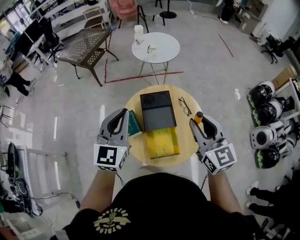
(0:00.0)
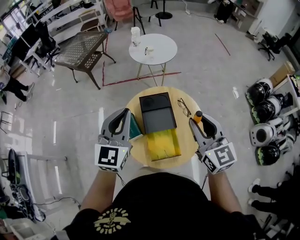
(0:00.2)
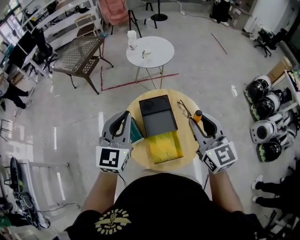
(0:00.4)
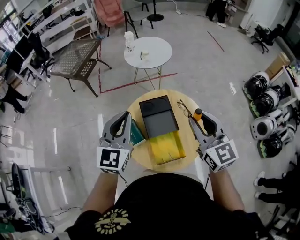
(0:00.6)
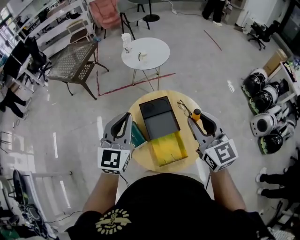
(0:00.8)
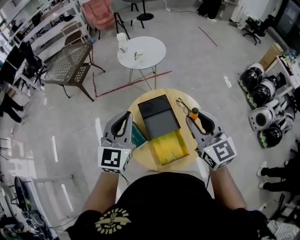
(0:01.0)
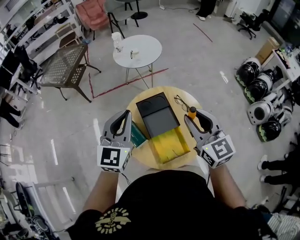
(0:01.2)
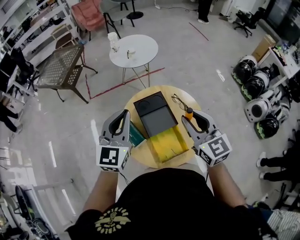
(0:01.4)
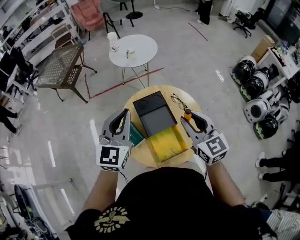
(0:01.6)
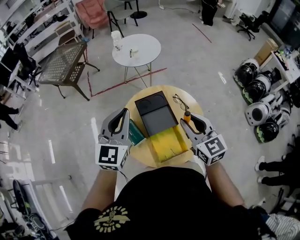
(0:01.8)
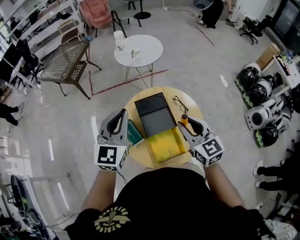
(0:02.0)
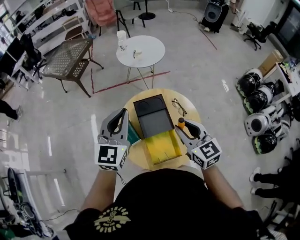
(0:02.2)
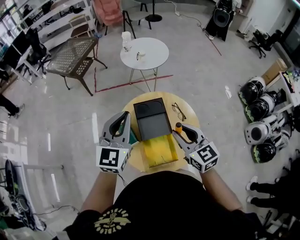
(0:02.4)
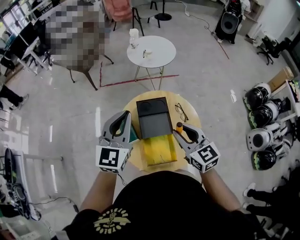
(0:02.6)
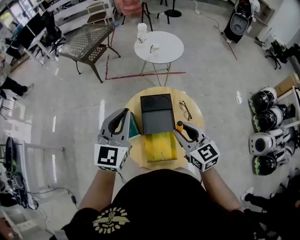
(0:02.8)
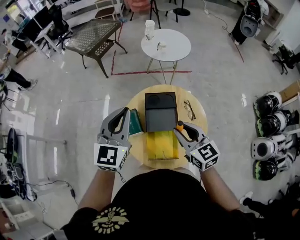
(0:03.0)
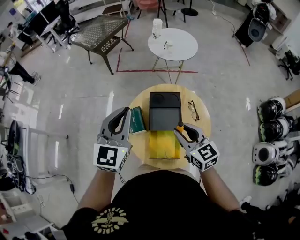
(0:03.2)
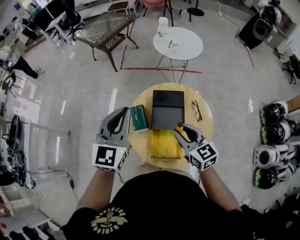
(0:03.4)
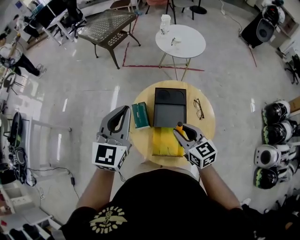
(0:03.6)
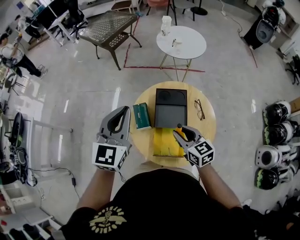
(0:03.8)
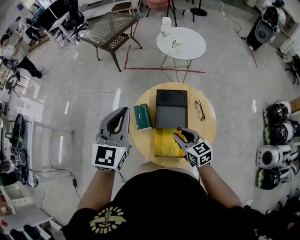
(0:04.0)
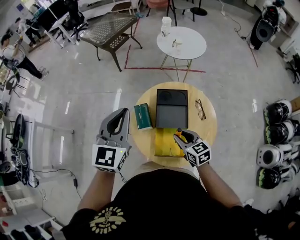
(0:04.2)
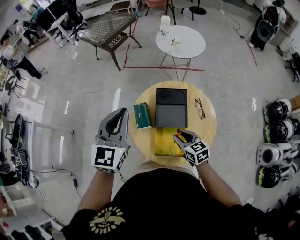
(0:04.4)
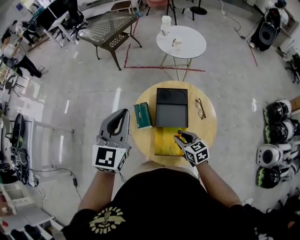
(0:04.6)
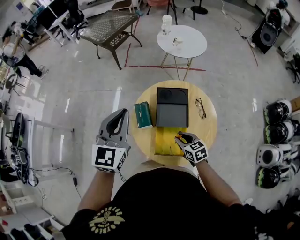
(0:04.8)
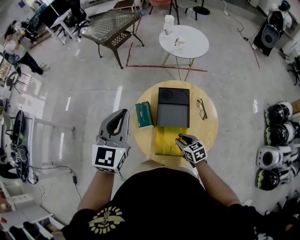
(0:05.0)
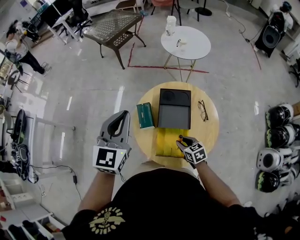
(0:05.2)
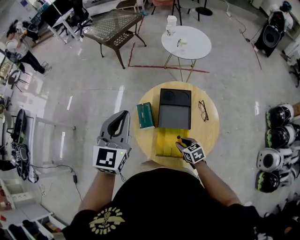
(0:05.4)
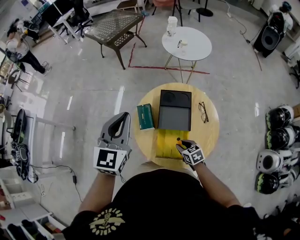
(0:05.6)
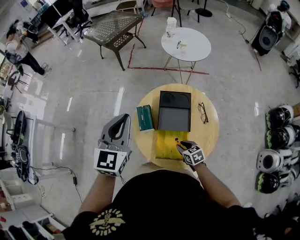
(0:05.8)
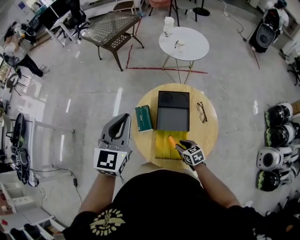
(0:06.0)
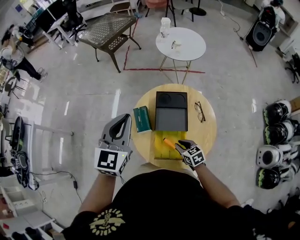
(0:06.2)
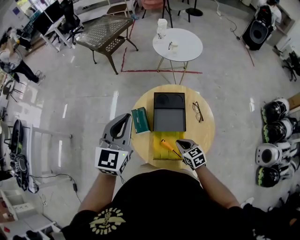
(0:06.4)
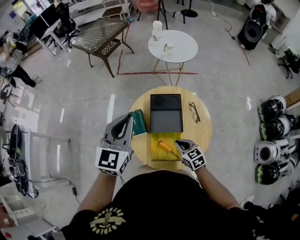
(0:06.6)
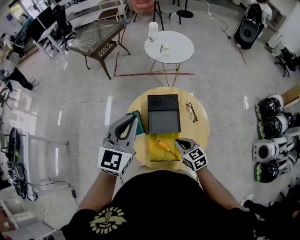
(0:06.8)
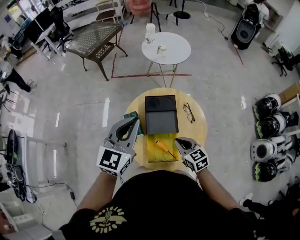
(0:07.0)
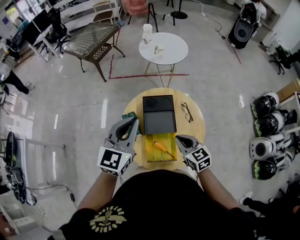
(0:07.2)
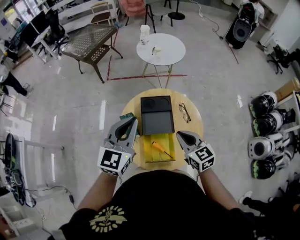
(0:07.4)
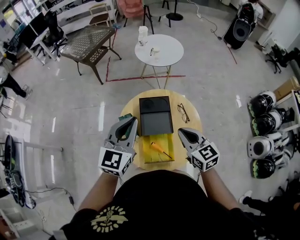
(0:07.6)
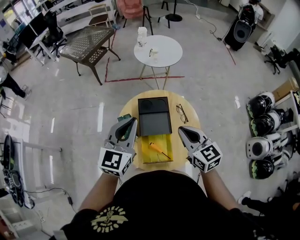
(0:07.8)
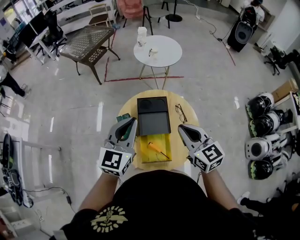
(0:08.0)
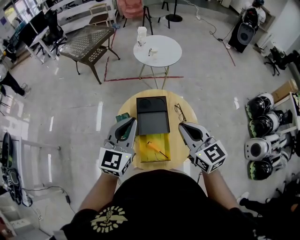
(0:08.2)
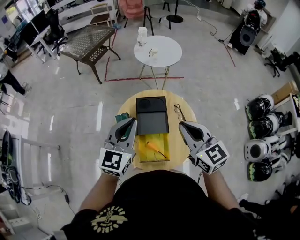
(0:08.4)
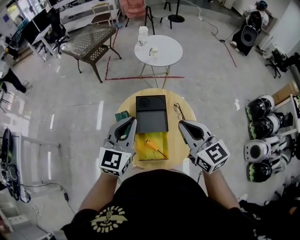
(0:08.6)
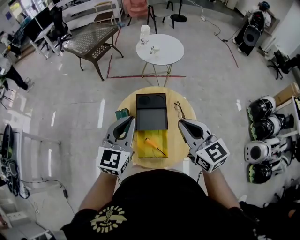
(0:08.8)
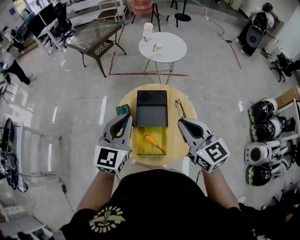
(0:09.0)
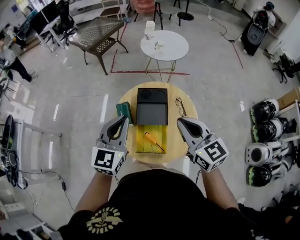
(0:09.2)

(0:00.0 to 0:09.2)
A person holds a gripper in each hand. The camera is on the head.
0:00.0 - 0:01.6: The right gripper shifts by roughly 5 cm. The left gripper moves forward, roughly 5 cm.
0:01.6 - 0:03.0: The left gripper rotates roughly 20 degrees; the right gripper is displaced downward by roughly 5 cm, and rotates some 30 degrees.
0:03.0 - 0:04.6: The right gripper shifts some 15 cm downward, and turns by approximately 20 degrees, while the left gripper goes some 5 cm to the left.
0:04.6 - 0:06.2: The right gripper shifts approximately 10 cm downward.
0:06.2 - 0:07.6: The right gripper goes approximately 25 cm upward, changes its angle by roughly 30 degrees, and closes its fingers, while the left gripper heads to the right, covering some 10 cm.
0:07.6 - 0:09.2: The left gripper travels backward by roughly 5 cm. The right gripper shifts some 10 cm upward.

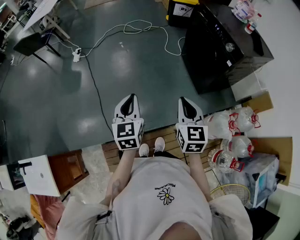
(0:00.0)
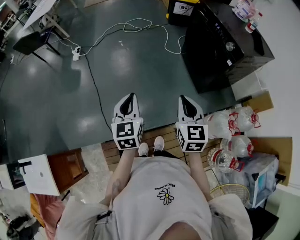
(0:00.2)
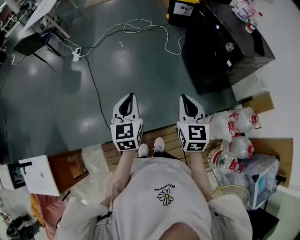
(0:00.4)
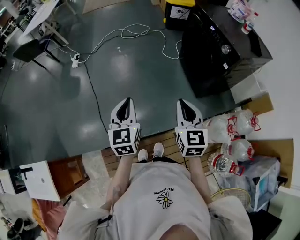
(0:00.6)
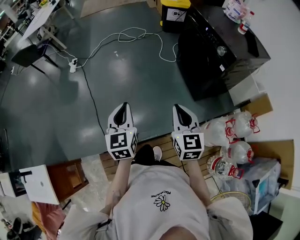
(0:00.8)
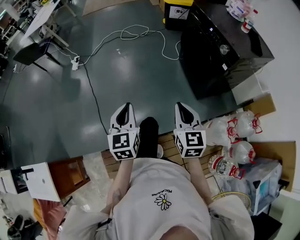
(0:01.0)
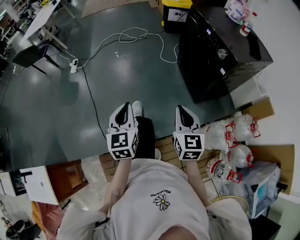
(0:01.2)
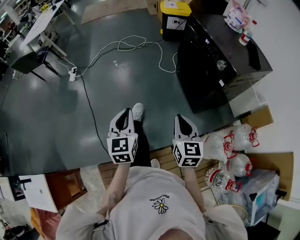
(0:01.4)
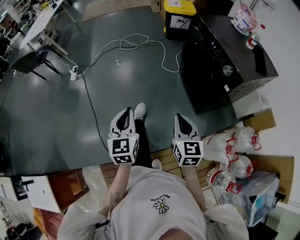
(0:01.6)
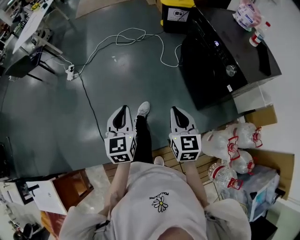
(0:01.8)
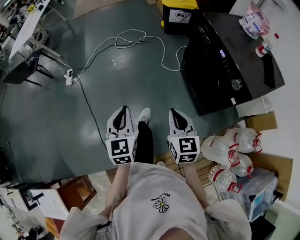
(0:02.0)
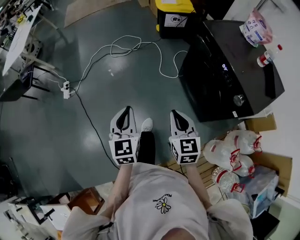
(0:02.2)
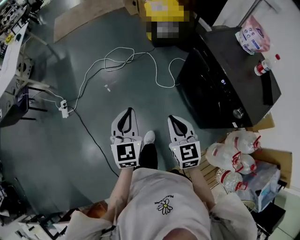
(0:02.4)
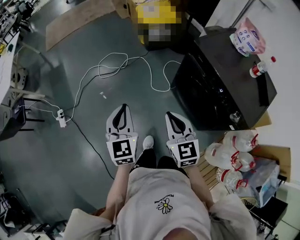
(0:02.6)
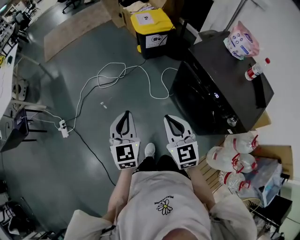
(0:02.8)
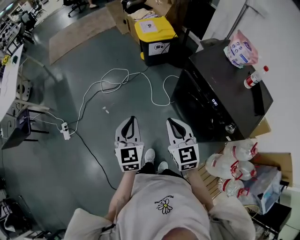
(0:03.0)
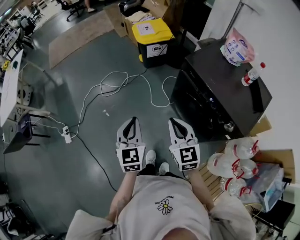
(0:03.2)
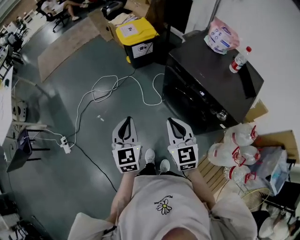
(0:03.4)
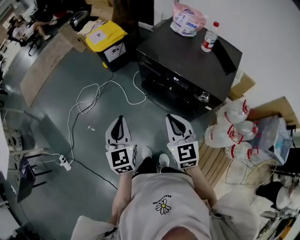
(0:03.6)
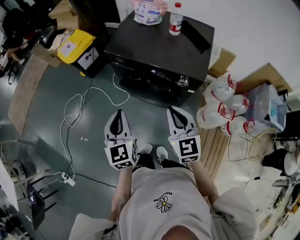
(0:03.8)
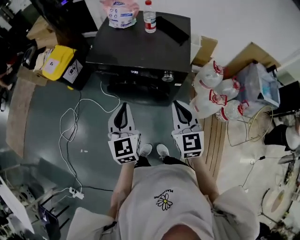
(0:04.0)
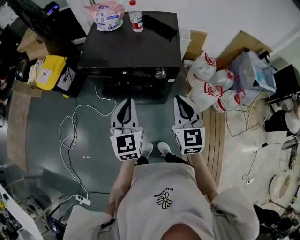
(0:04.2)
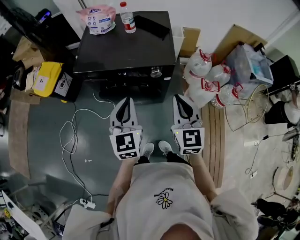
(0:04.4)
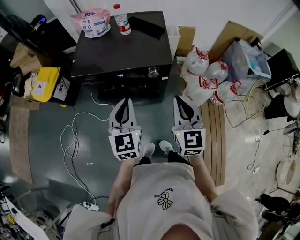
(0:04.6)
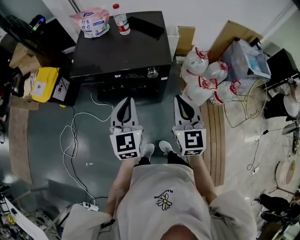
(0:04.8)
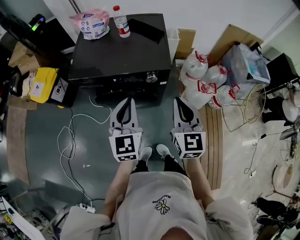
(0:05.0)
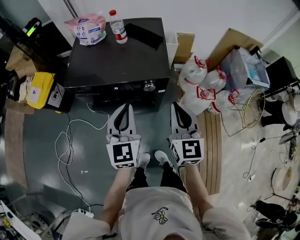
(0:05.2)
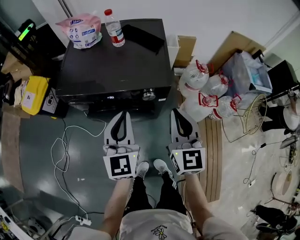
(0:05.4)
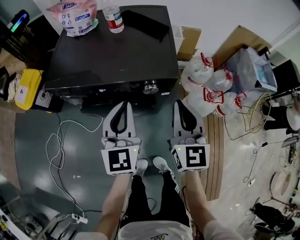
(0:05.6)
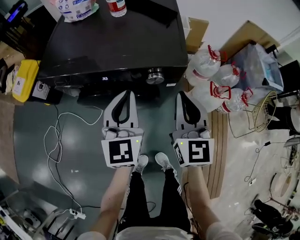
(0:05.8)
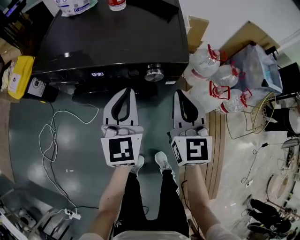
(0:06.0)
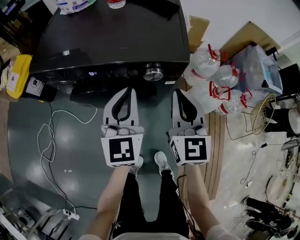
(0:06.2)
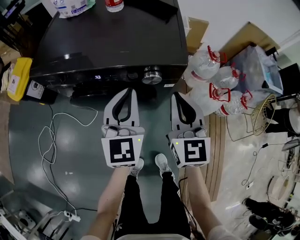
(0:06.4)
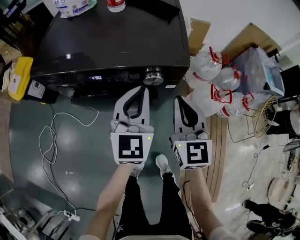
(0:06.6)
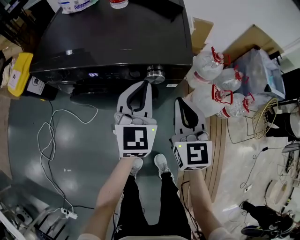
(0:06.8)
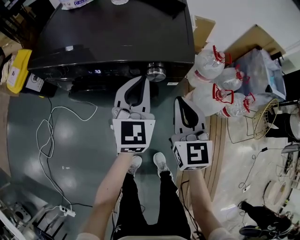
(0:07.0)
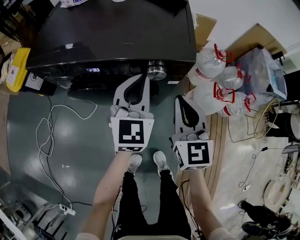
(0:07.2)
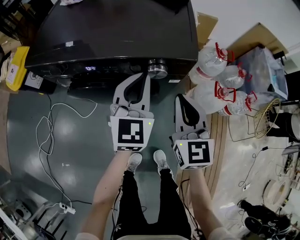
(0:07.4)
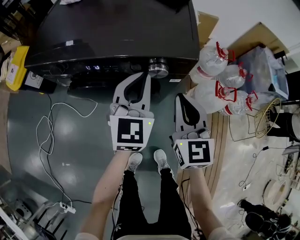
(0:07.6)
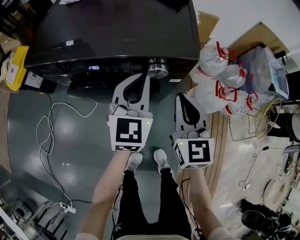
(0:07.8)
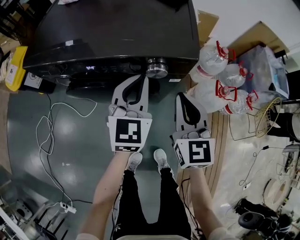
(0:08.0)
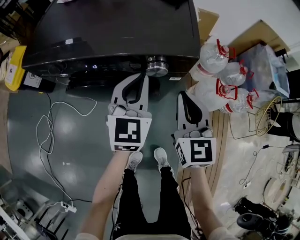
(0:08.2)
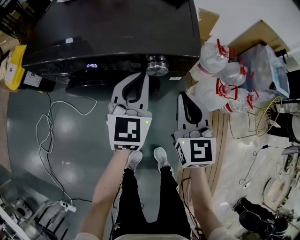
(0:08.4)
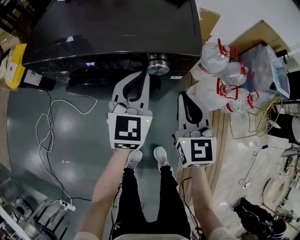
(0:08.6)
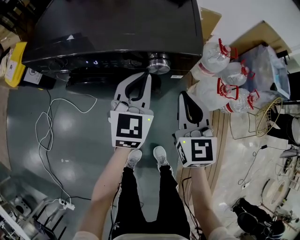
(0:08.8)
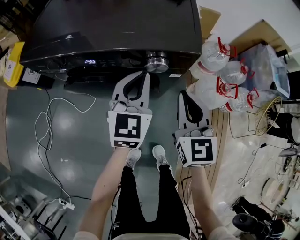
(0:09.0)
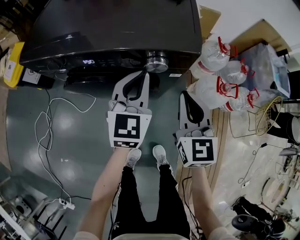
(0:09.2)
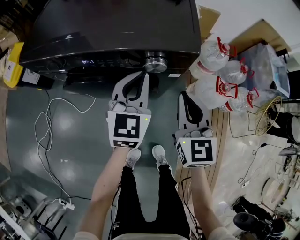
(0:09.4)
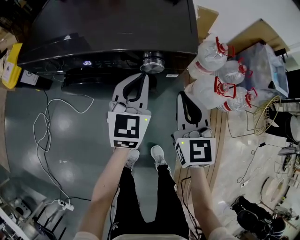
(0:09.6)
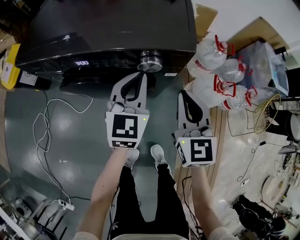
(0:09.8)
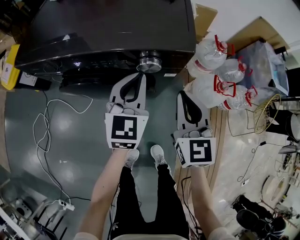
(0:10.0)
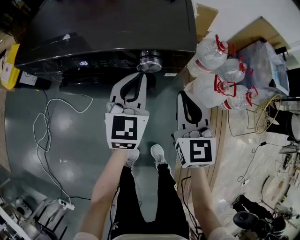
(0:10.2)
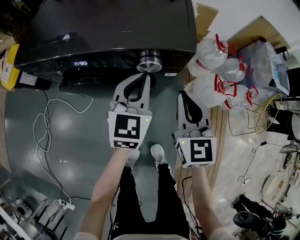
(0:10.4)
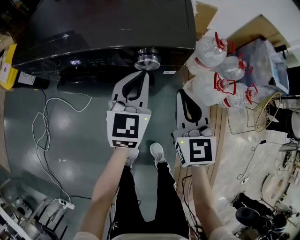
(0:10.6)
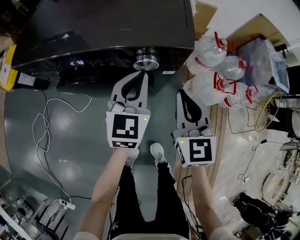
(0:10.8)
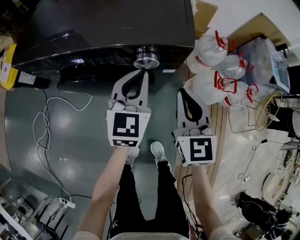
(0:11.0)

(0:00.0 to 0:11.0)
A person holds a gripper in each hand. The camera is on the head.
0:00.0 - 0:01.6: The grippers both shift forward and to the right by roughly 15 cm.
0:01.6 - 0:03.2: The pair of grippers is taken forward, about 40 cm.
0:03.2 - 0:04.8: The left gripper changes place by approximately 30 cm, and changes its angle by roughly 60 degrees. Meanwhile the right gripper moves some 35 cm, and swivels roughly 60 degrees.
0:04.8 - 0:06.2: Both grippers move downward and forward, approximately 20 cm.
0:06.2 - 0:07.8: The right gripper moves downward, about 5 cm; the left gripper changes place by some 5 cm.
0:07.8 - 0:11.0: The grippers move only a little.

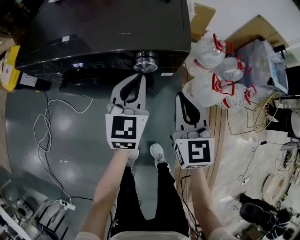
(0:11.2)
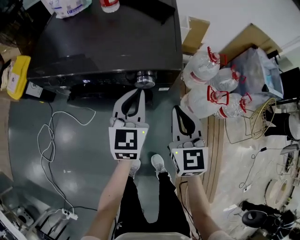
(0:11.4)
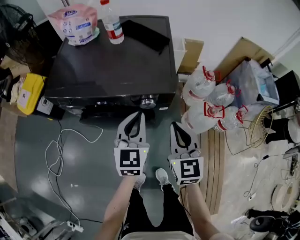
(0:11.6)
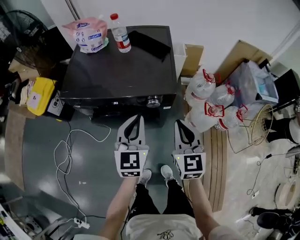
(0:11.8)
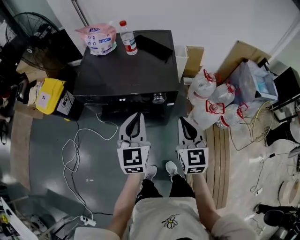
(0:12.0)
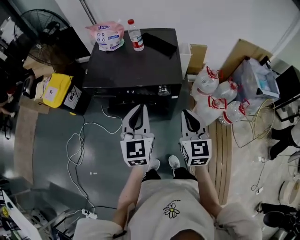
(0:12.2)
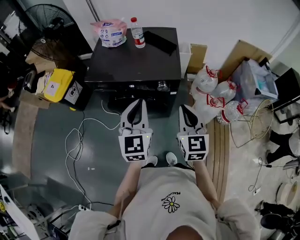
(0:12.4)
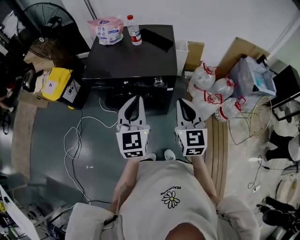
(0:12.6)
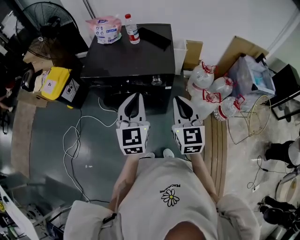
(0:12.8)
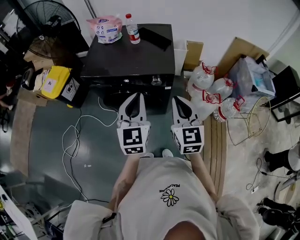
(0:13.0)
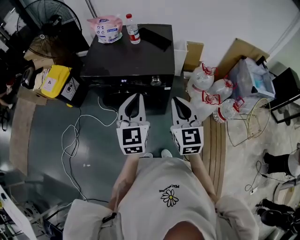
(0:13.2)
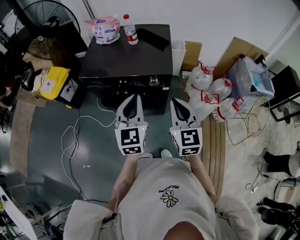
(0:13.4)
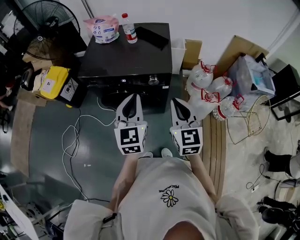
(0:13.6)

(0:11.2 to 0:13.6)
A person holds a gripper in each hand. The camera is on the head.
0:11.2 - 0:12.4: The two grippers go about 30 cm upward and backward.
0:12.4 - 0:13.6: There are only small adjustments of the grippers.

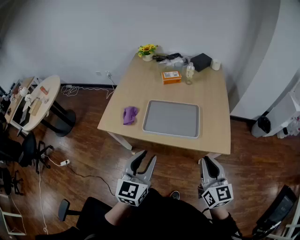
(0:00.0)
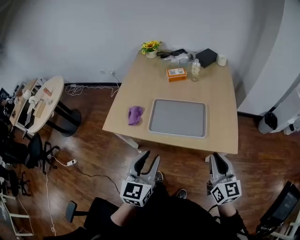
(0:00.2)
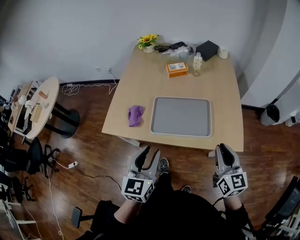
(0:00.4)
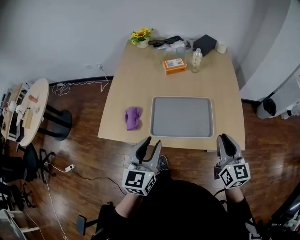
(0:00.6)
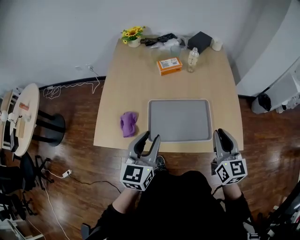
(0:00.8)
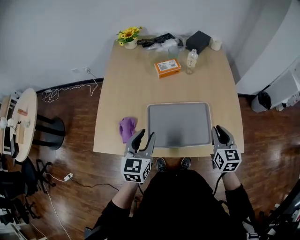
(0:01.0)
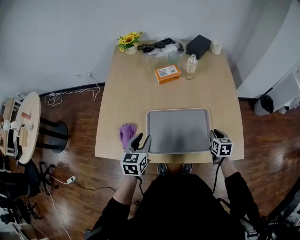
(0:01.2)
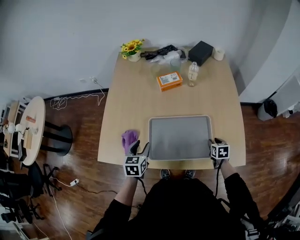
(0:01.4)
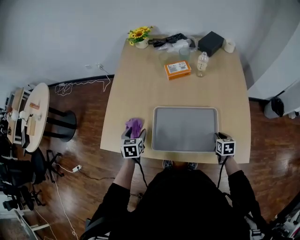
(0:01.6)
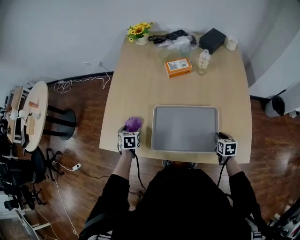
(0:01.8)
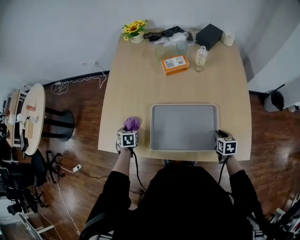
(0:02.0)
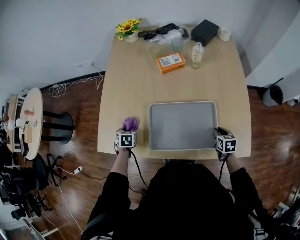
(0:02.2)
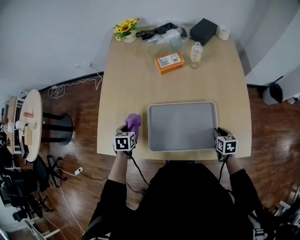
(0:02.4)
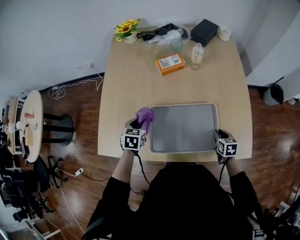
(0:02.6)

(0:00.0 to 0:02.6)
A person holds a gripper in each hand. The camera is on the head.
0:00.0 - 0:01.2: Both grippers move forward and downward, some 35 cm. The left gripper changes its angle by some 20 degrees. Meanwhile the right gripper points its fingers about 40 degrees further downward.
0:01.2 - 0:02.6: The left gripper goes about 15 cm forward and downward, changes its angle by approximately 20 degrees, and opens, then closes again, while the right gripper goes roughly 5 cm downward, and opens and closes again.
